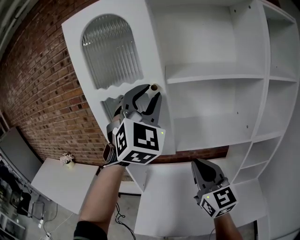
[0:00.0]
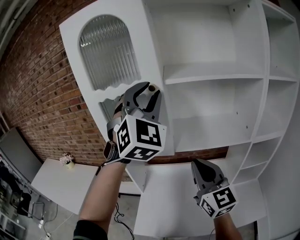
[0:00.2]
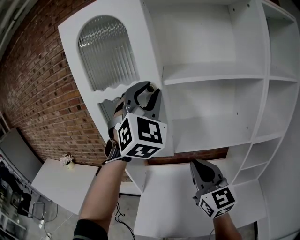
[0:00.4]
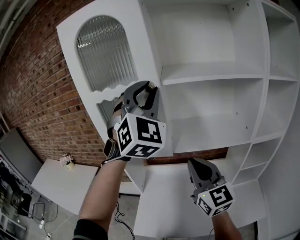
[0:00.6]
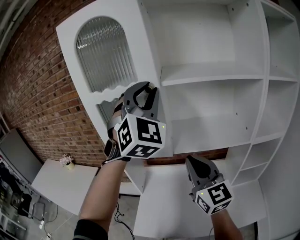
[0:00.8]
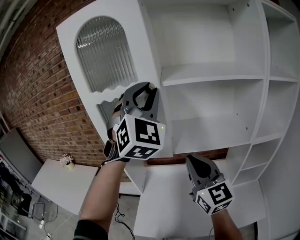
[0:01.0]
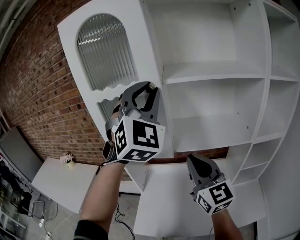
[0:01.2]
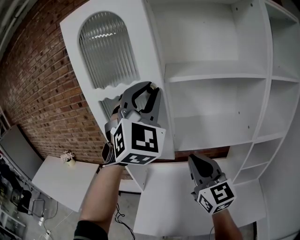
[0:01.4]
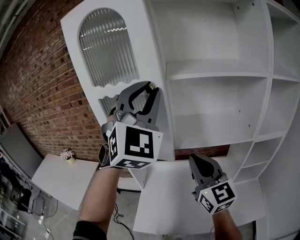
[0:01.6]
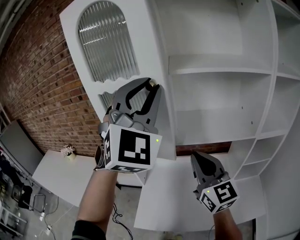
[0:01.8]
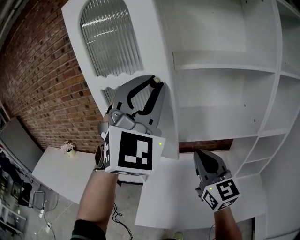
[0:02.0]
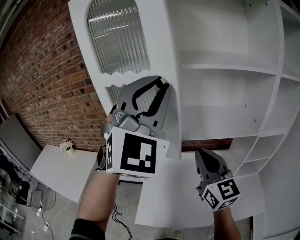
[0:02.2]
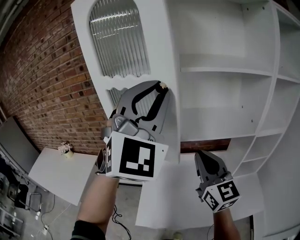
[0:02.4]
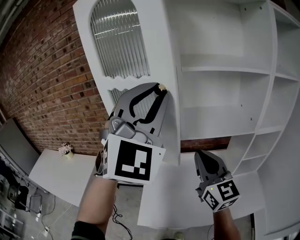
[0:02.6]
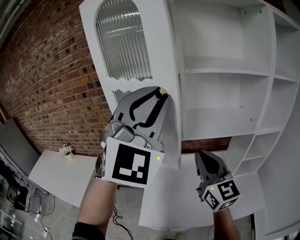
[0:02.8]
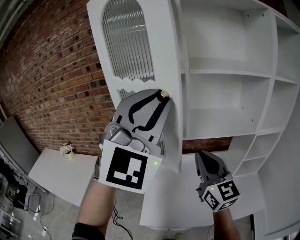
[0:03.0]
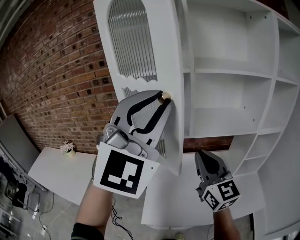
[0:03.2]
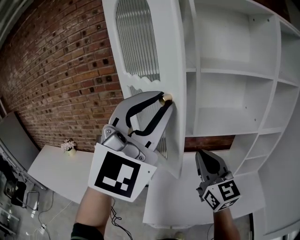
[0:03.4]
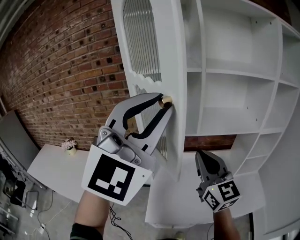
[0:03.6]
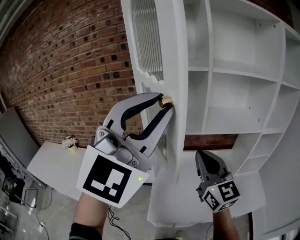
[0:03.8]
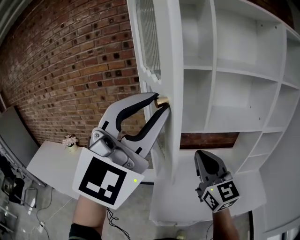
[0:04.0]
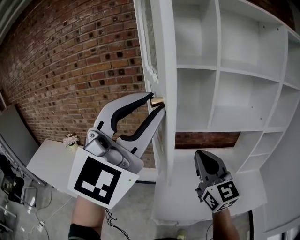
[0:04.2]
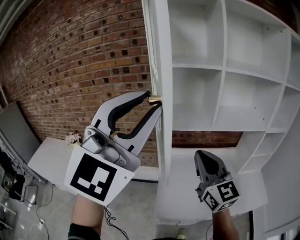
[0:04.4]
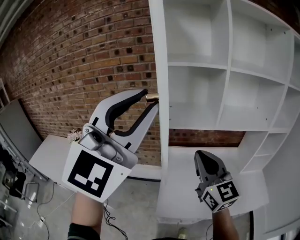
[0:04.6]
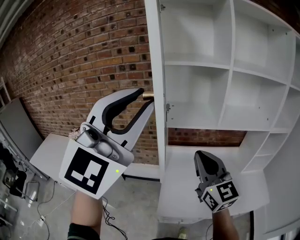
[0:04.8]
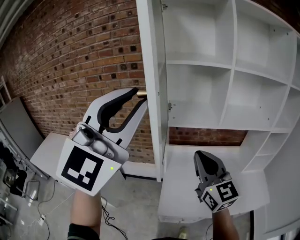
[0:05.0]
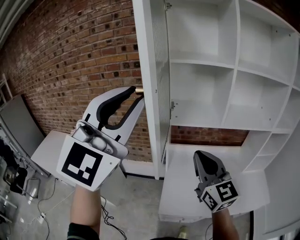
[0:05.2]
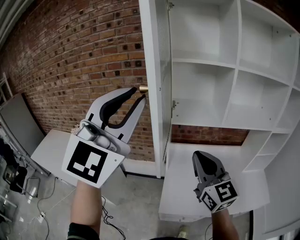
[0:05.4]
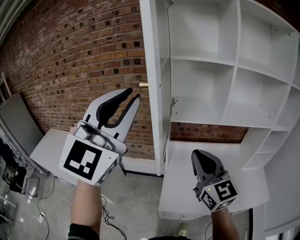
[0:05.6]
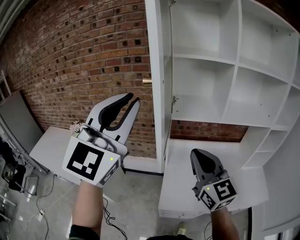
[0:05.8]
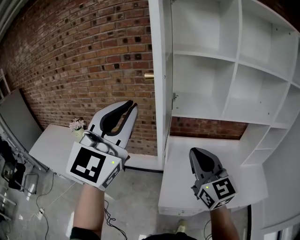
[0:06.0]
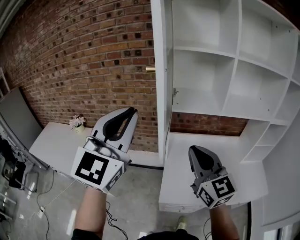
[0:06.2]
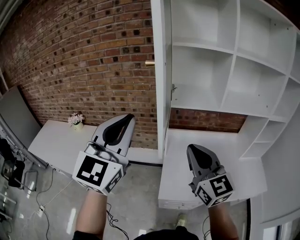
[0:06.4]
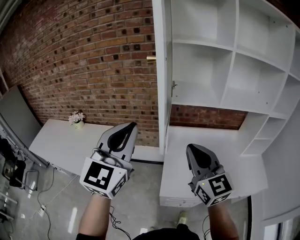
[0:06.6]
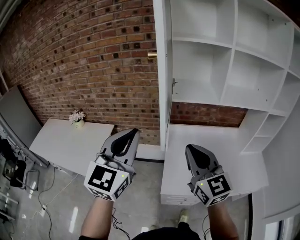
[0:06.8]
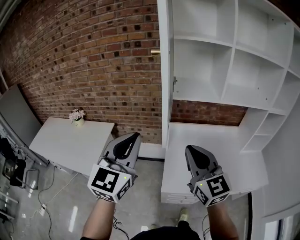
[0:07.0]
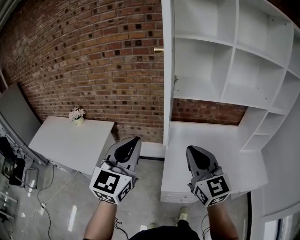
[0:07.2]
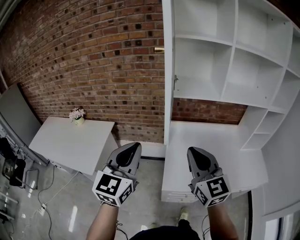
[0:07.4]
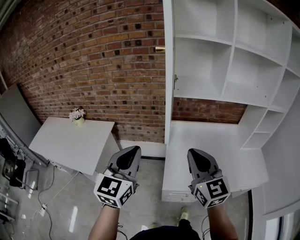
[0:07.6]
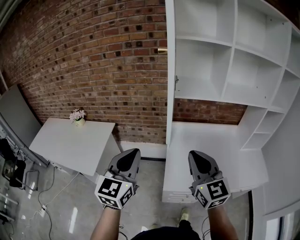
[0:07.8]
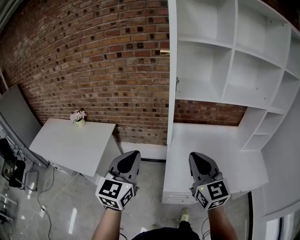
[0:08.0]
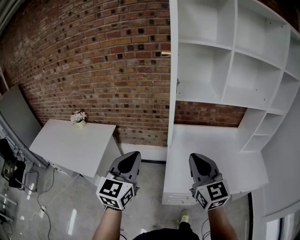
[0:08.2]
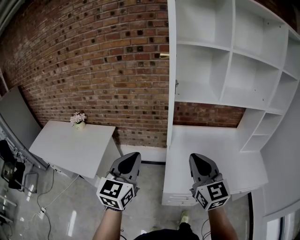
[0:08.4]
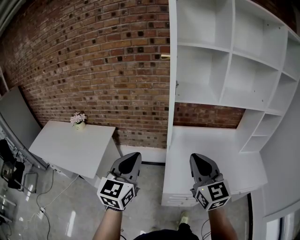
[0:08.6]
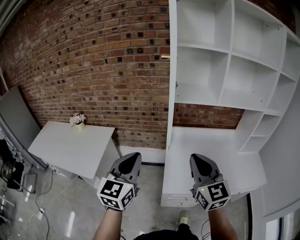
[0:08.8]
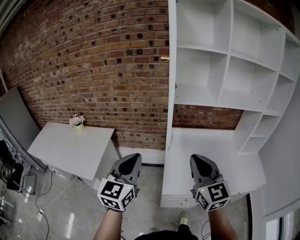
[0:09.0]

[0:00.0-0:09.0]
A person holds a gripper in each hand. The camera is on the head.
0:00.0 to 0:01.6: The grippers stay close to where they were, moving slightly.
0:01.6 to 0:03.0: The right gripper shifts some 5 cm to the left. The left gripper travels backward and to the left by about 10 cm.
0:03.0 to 0:04.4: Both grippers move to the left and backward, about 15 cm.
0:04.4 to 0:06.0: The left gripper moves to the left and downward, about 15 cm; the right gripper travels to the left by some 5 cm.
0:06.0 to 0:07.6: The right gripper goes roughly 10 cm backward and downward. Meanwhile the left gripper goes roughly 20 cm downward, and changes its angle by some 30 degrees.
0:07.6 to 0:09.0: The grippers stay close to where they were, moving slightly.

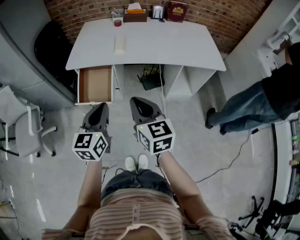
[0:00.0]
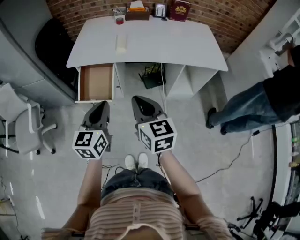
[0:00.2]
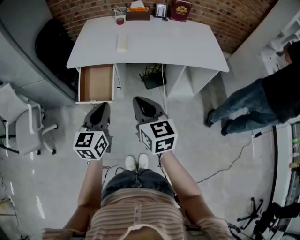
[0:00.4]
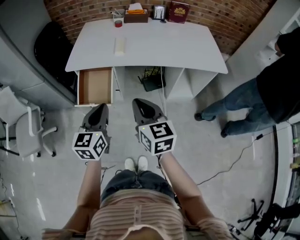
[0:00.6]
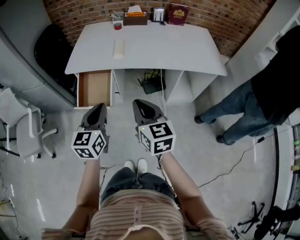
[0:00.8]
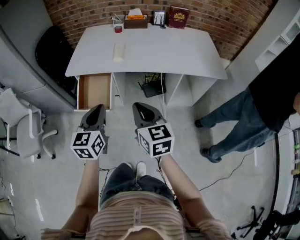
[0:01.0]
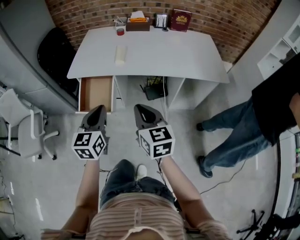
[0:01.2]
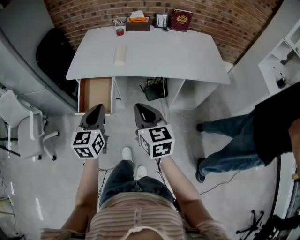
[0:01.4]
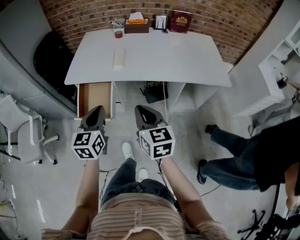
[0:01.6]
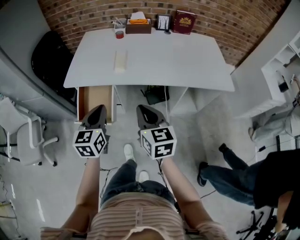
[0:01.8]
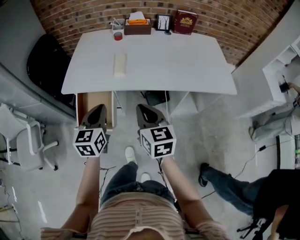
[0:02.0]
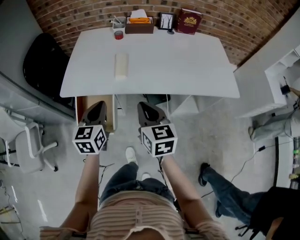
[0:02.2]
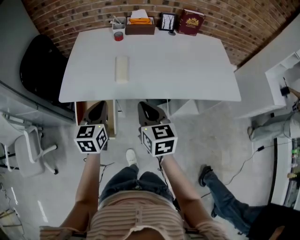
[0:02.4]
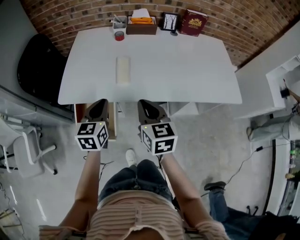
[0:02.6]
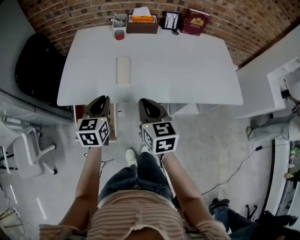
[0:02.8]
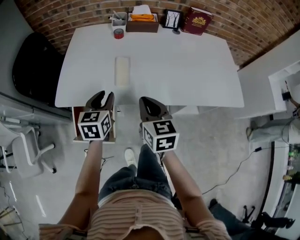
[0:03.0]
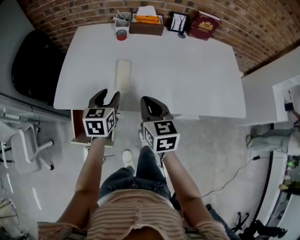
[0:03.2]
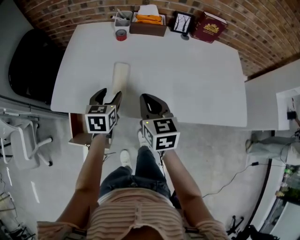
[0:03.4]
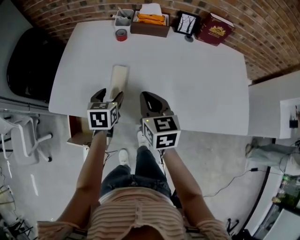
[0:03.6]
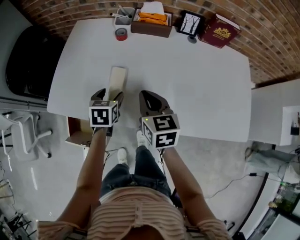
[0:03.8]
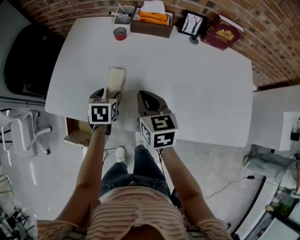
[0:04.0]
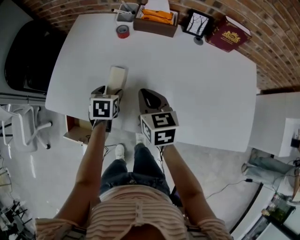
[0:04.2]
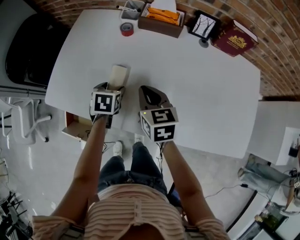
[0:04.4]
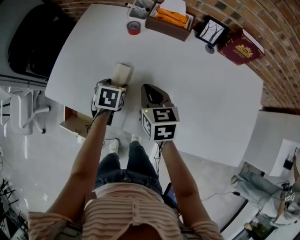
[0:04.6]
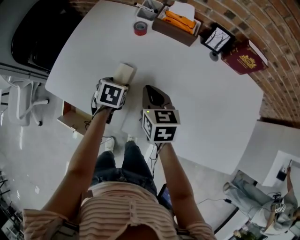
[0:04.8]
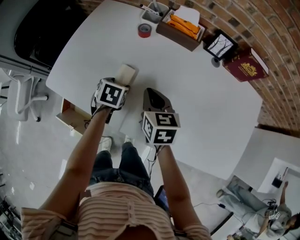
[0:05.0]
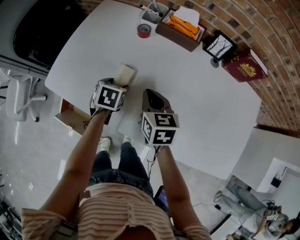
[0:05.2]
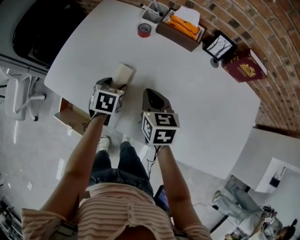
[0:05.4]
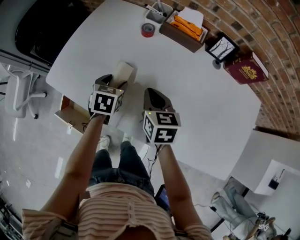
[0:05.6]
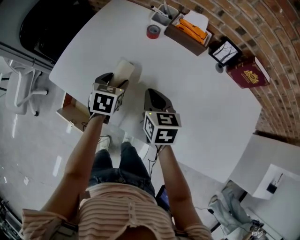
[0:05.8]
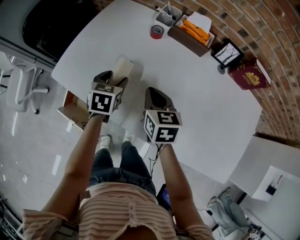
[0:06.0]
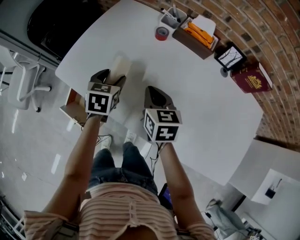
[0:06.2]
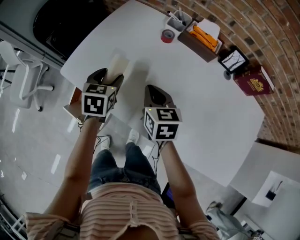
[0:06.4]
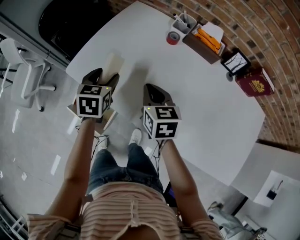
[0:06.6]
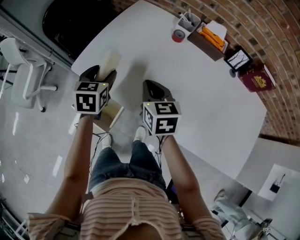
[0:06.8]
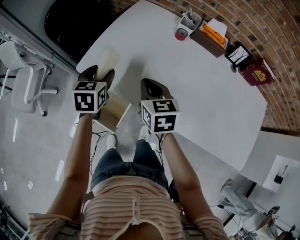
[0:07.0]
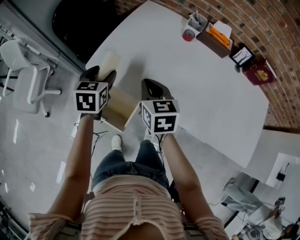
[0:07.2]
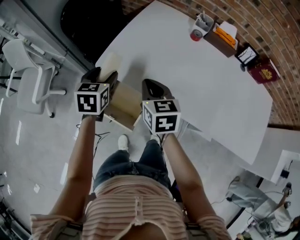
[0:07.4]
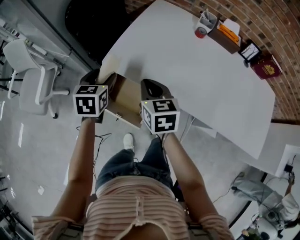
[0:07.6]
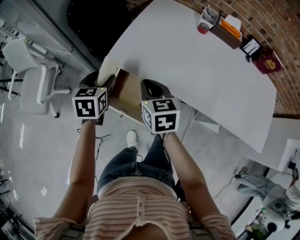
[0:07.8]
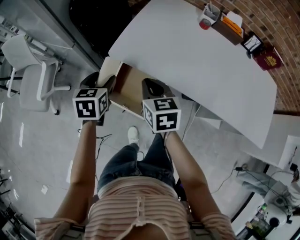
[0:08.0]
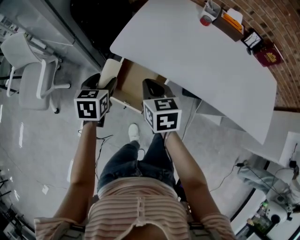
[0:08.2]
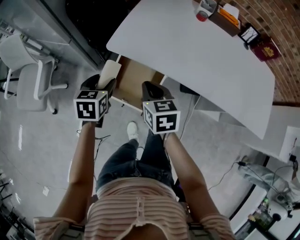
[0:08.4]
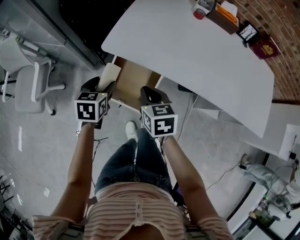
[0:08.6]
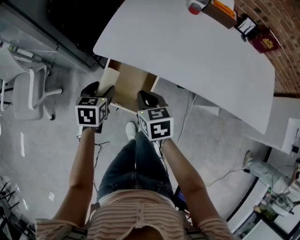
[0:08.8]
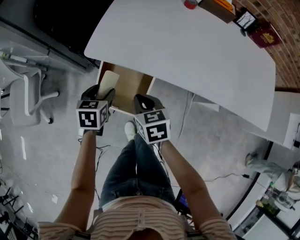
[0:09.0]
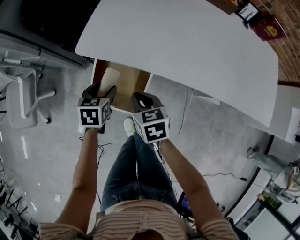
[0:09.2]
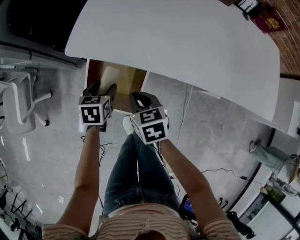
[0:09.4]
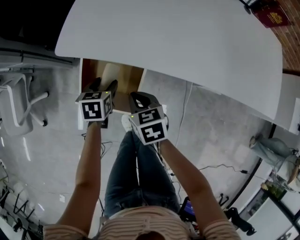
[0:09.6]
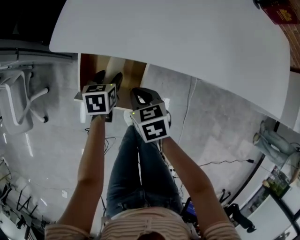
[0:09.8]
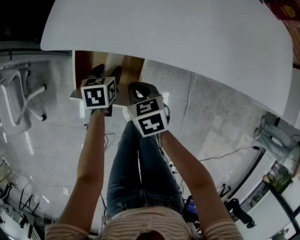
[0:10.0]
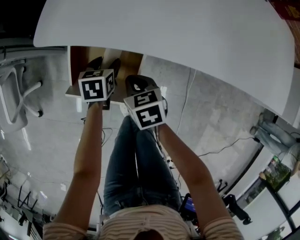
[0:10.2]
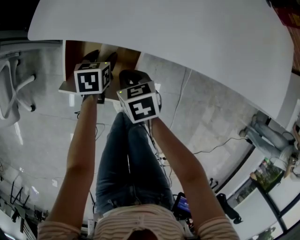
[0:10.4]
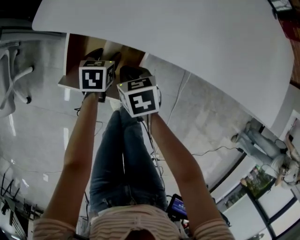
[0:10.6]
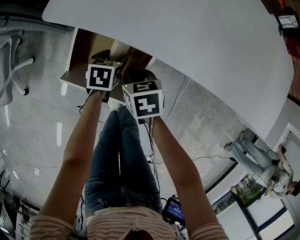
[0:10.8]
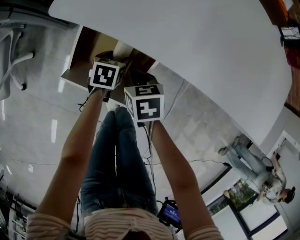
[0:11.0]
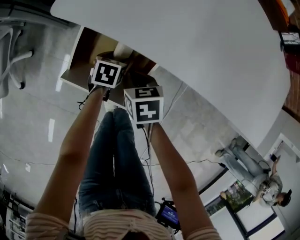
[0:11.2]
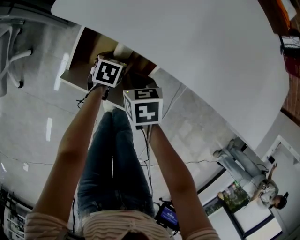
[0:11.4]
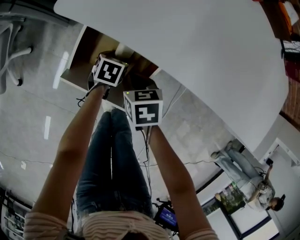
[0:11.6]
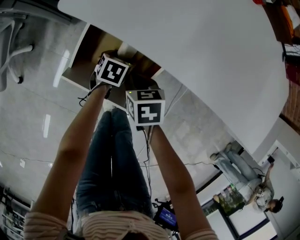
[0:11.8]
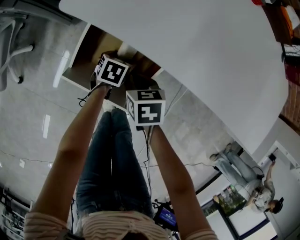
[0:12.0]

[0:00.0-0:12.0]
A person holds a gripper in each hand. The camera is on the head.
0:00.0 to 0:01.6: The left gripper shifts some 10 cm forward; the right gripper heads forward and to the right, covering approximately 10 cm.
0:01.6 to 0:03.0: The two grippers go roughly 30 cm forward.
0:03.0 to 0:04.4: The right gripper shifts some 25 cm forward. Meanwhile the left gripper shifts approximately 25 cm forward, downward and to the right, angles its fingers downward, by some 30 degrees, and opens up.
0:04.4 to 0:06.0: The left gripper goes about 5 cm upward and to the left.
0:06.0 to 0:07.6: The grippers both shift to the left by about 35 cm.
0:07.6 to 0:09.0: The two grippers go some 15 cm downward and backward.
0:09.0 to 0:10.4: The right gripper shifts roughly 20 cm downward, while the left gripper travels downward and to the right by about 25 cm.
0:10.4 to 0:12.0: The right gripper moves about 5 cm. Meanwhile the left gripper goes roughly 10 cm downward.

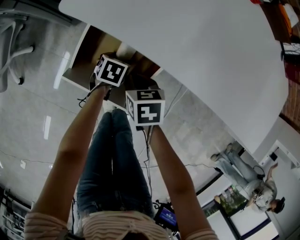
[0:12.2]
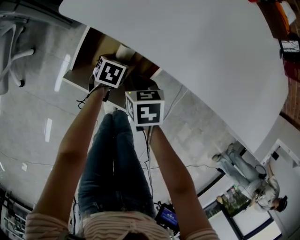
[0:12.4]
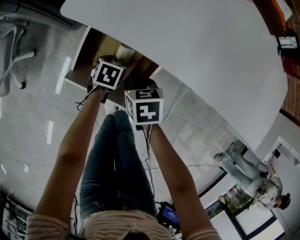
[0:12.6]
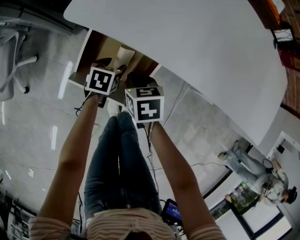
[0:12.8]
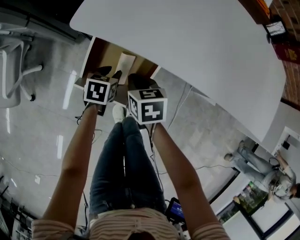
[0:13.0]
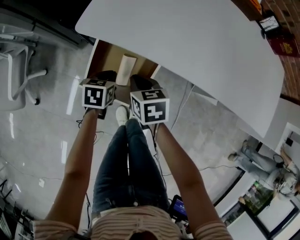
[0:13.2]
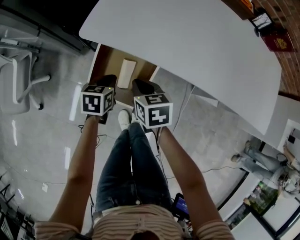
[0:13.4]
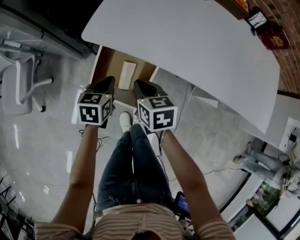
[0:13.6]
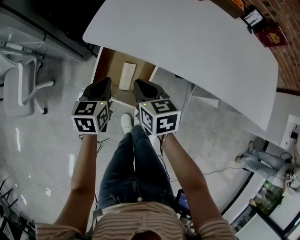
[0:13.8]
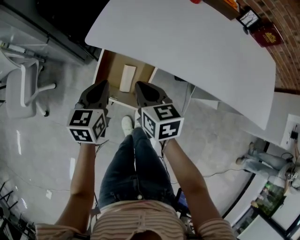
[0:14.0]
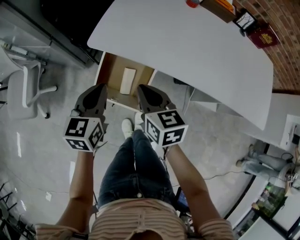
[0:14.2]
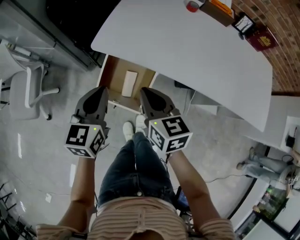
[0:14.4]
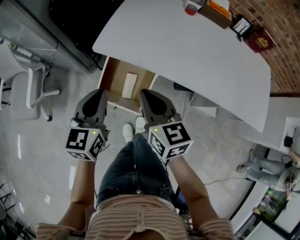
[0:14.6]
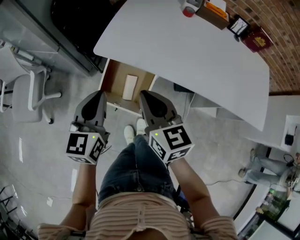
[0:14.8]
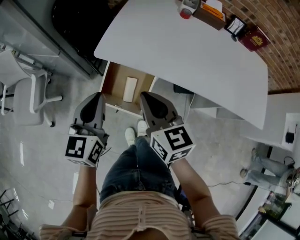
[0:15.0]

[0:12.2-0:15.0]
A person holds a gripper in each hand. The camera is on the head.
0:12.2 to 0:13.6: The grippers both shift upward by approximately 20 cm. The left gripper turns by about 20 degrees, and closes its fingers.
0:13.6 to 0:15.0: Both grippers move upward, some 25 cm. The right gripper swivels approximately 30 degrees. The left gripper changes its angle by approximately 30 degrees.
